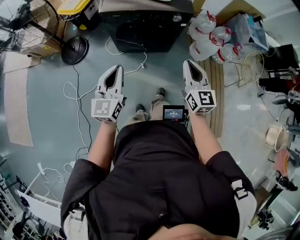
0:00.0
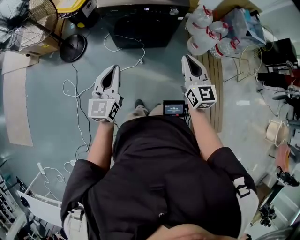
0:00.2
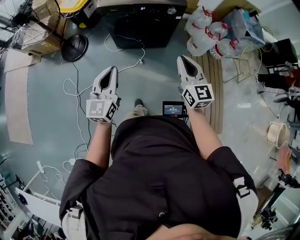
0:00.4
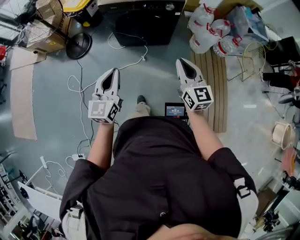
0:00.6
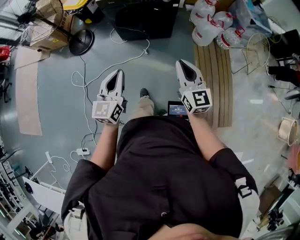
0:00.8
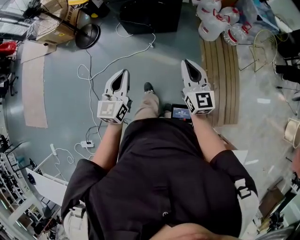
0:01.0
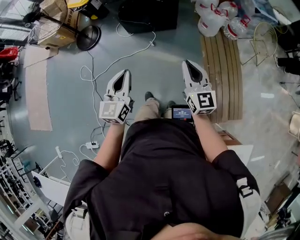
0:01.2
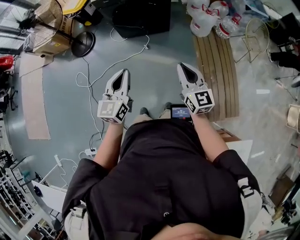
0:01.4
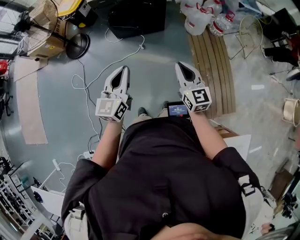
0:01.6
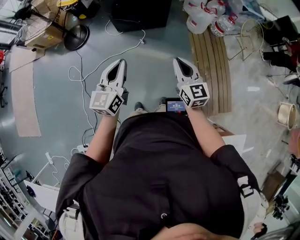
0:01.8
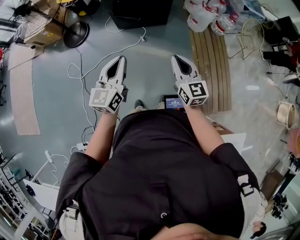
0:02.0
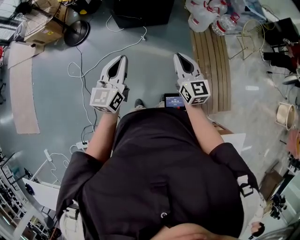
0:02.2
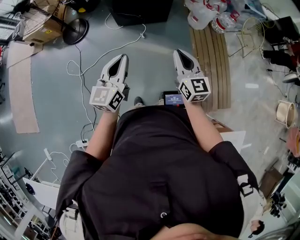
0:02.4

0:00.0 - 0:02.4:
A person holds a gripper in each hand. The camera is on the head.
0:00.0 - 0:01.2: Both grippers travel together backward, some 25 cm.
0:01.2 - 0:02.4: The right gripper shifts roughly 10 cm to the left. Meanwhile the left gripper travels to the left by about 5 cm.

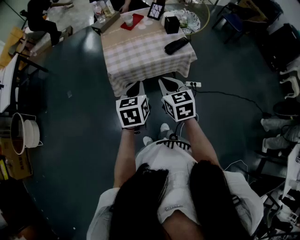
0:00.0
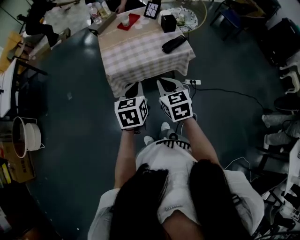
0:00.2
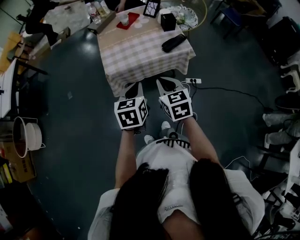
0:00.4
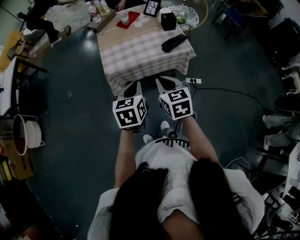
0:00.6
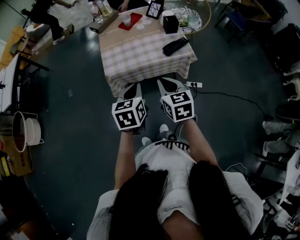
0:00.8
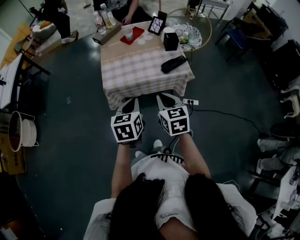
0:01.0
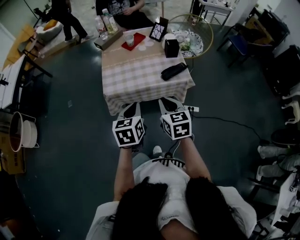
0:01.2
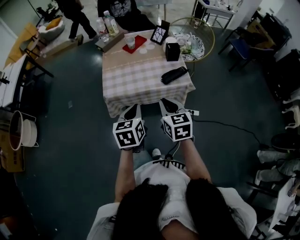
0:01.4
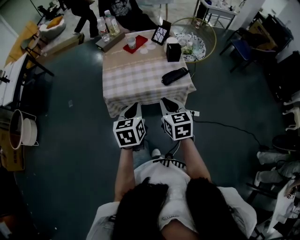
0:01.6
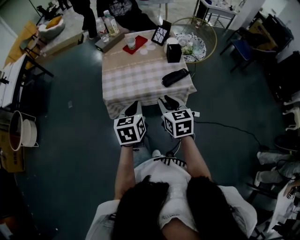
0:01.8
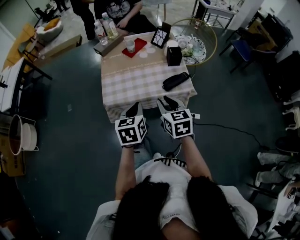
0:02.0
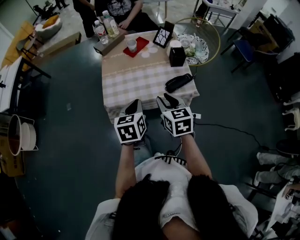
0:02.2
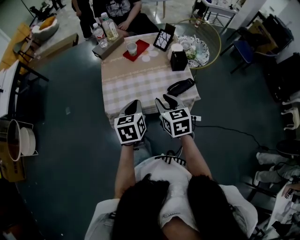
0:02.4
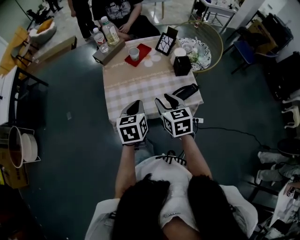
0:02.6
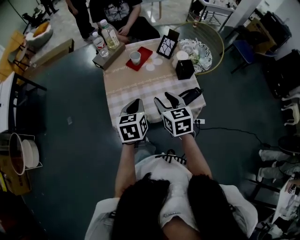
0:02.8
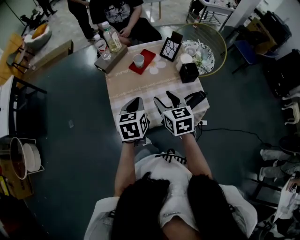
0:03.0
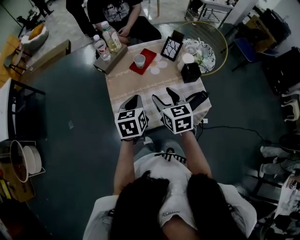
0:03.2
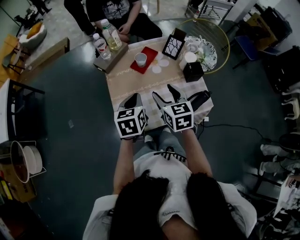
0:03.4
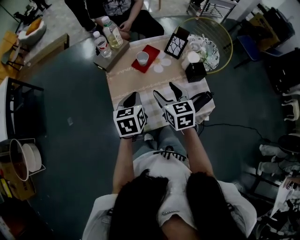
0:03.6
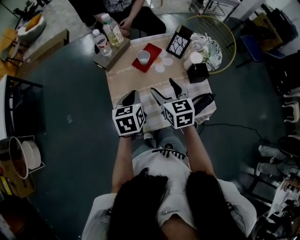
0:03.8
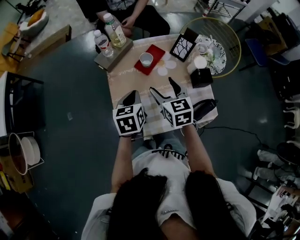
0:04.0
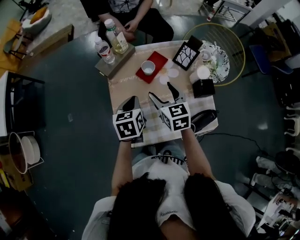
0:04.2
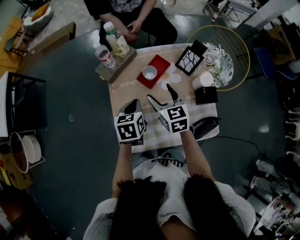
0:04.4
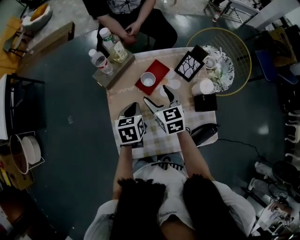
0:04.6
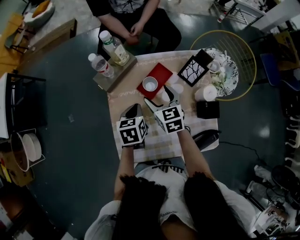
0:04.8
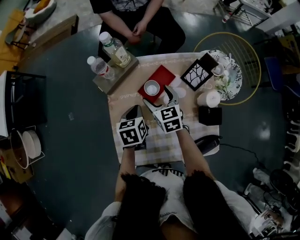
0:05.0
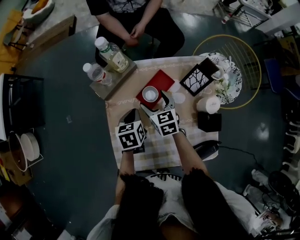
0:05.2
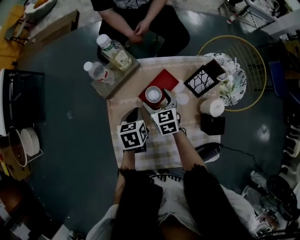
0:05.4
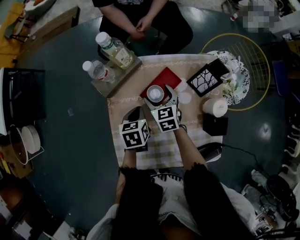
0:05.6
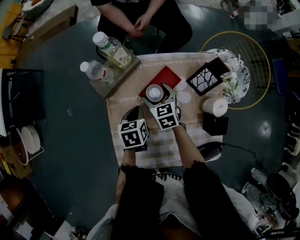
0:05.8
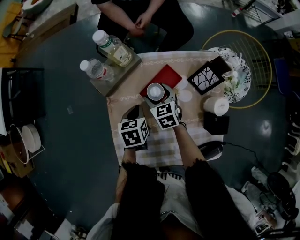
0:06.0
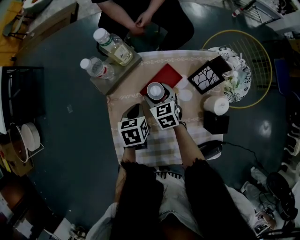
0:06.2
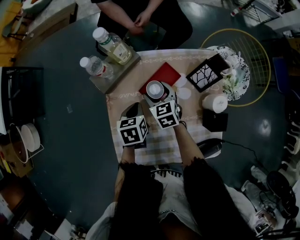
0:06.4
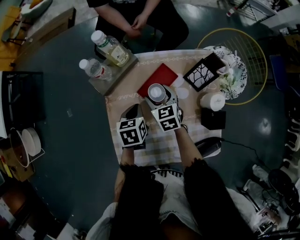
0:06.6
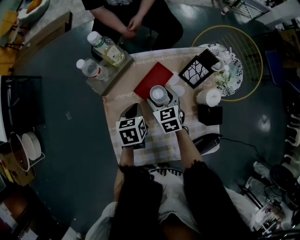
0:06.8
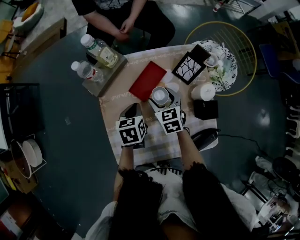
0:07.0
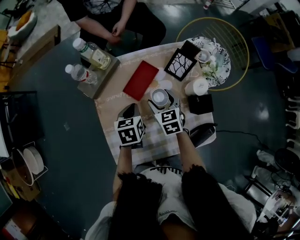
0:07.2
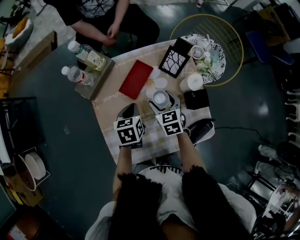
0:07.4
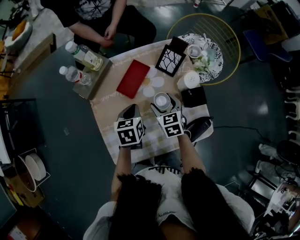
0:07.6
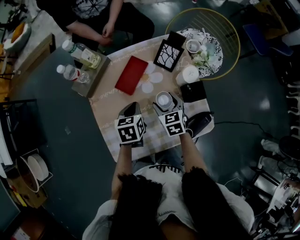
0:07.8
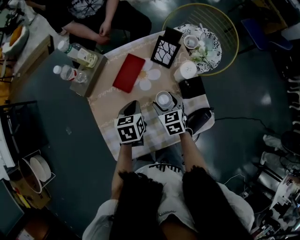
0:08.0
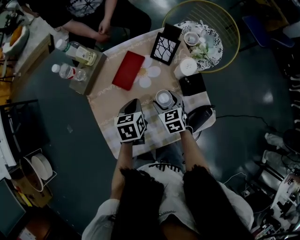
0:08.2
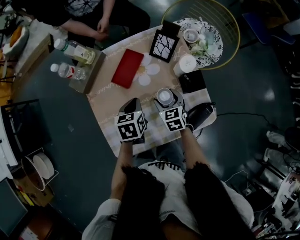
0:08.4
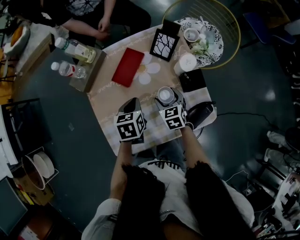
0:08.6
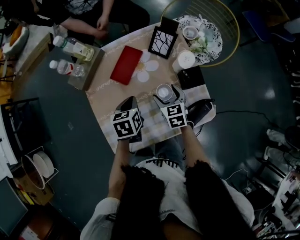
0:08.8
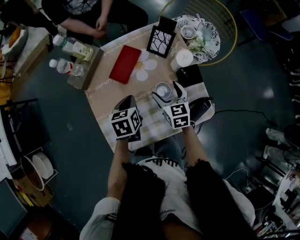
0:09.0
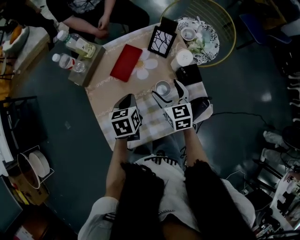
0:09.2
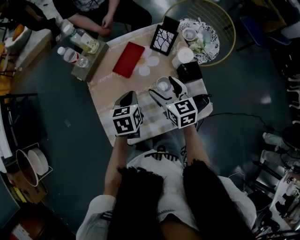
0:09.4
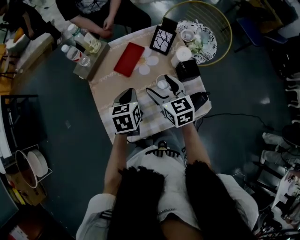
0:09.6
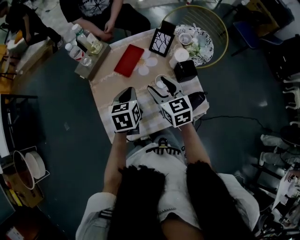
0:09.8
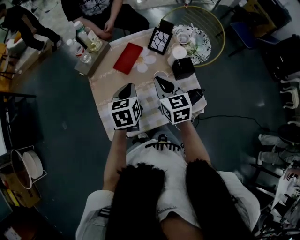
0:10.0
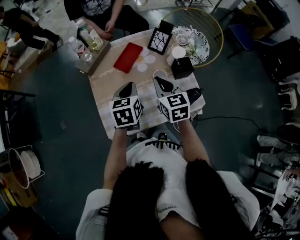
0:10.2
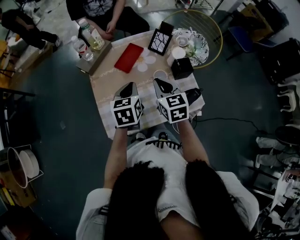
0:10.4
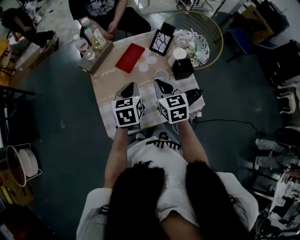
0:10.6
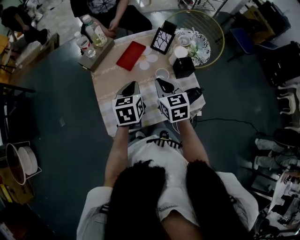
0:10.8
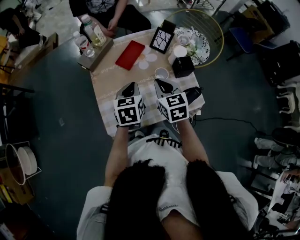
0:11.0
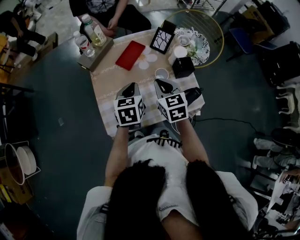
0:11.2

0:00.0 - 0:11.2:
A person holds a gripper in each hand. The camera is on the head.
0:00.0 - 0:01.6: The two grippers go some 10 cm to the right and forward.
0:01.6 - 0:03.2: Both grippers travel together forward, about 30 cm. The right gripper opens.
0:03.2 - 0:04.8: The grippers both shift forward and downward by about 25 cm.
0:04.8 - 0:06.4: The left gripper moves downward, some 5 cm, while the right gripper heads downward and forward, covering about 10 cm.
0:06.4 - 0:08.0: The right gripper moves to the right and backward, roughly 20 cm. Meanwhile the left gripper moves to the right and backward, approximately 15 cm.
0:08.0 - 0:09.6: The left gripper shifts roughly 5 cm upward, while the right gripper goes approximately 15 cm upward, and rotates about 20 degrees.
0:09.6 - 0:11.2: The right gripper moves backward, about 5 cm, and closes; the left gripper changes place by approximately 5 cm.

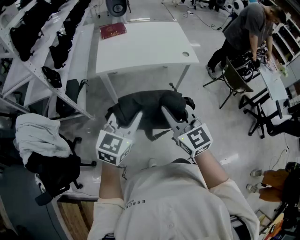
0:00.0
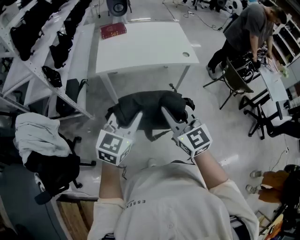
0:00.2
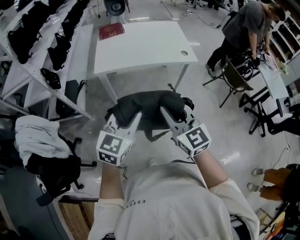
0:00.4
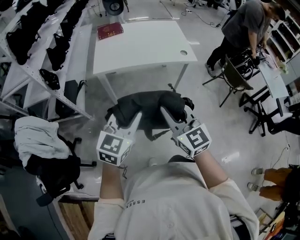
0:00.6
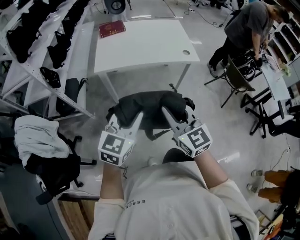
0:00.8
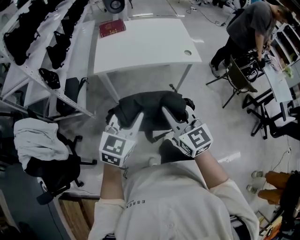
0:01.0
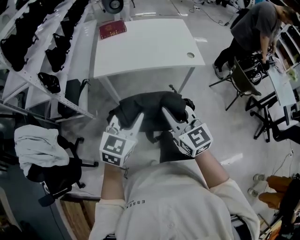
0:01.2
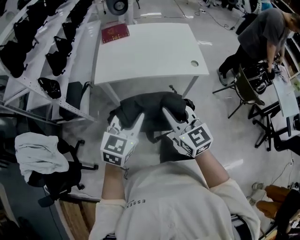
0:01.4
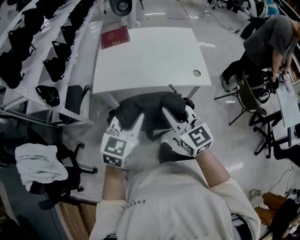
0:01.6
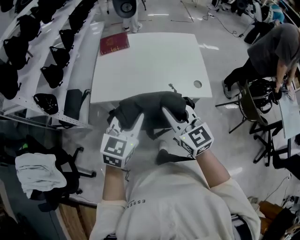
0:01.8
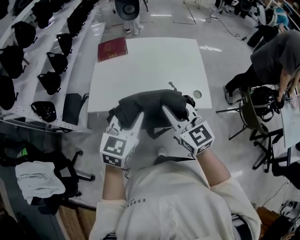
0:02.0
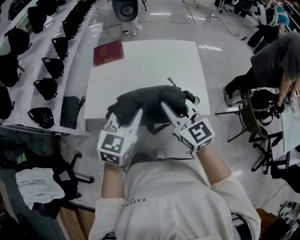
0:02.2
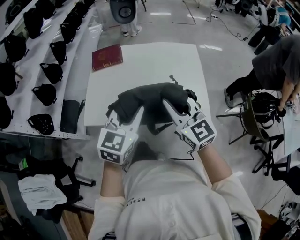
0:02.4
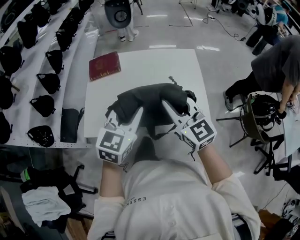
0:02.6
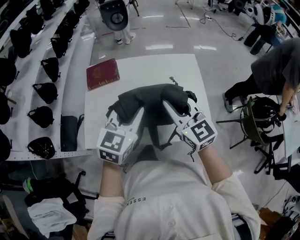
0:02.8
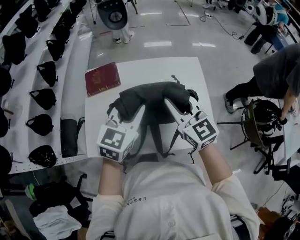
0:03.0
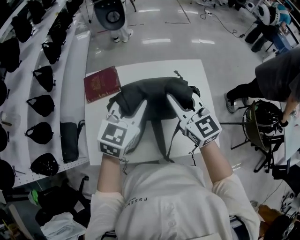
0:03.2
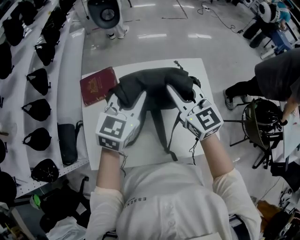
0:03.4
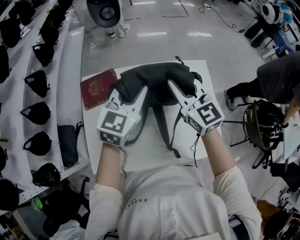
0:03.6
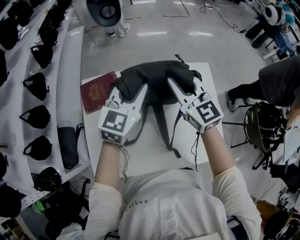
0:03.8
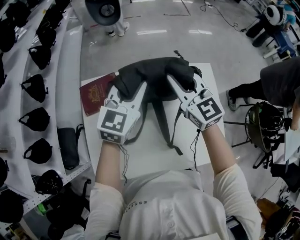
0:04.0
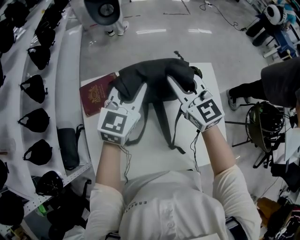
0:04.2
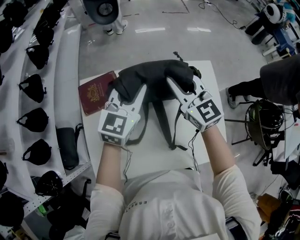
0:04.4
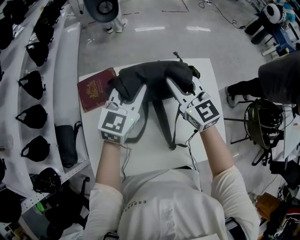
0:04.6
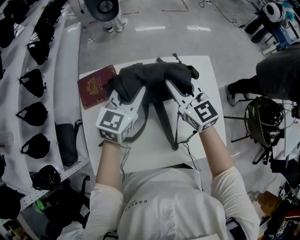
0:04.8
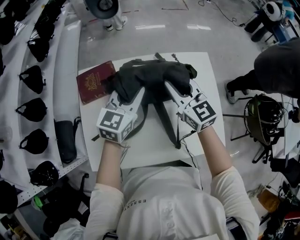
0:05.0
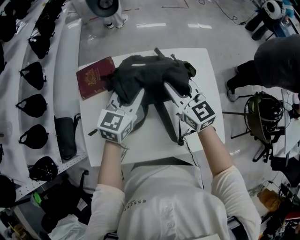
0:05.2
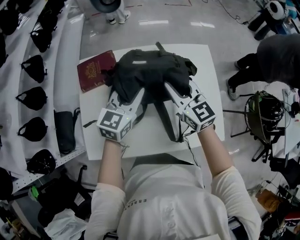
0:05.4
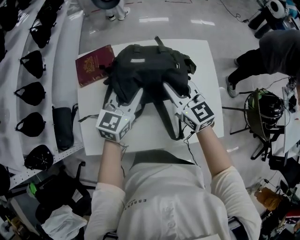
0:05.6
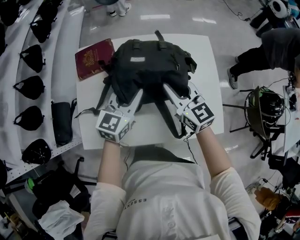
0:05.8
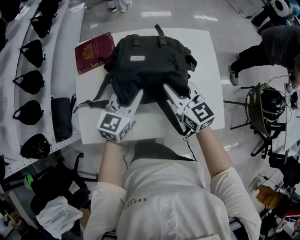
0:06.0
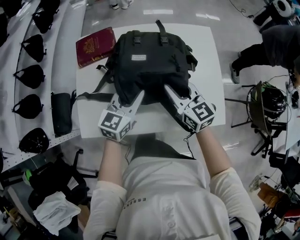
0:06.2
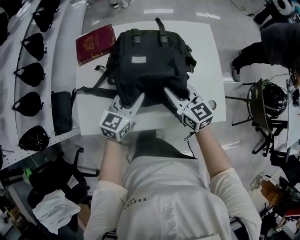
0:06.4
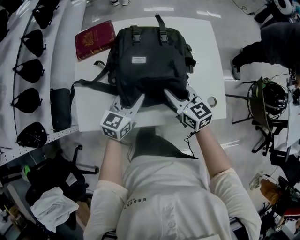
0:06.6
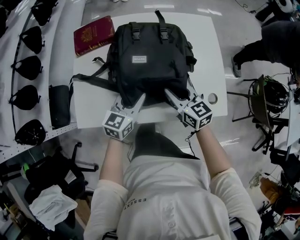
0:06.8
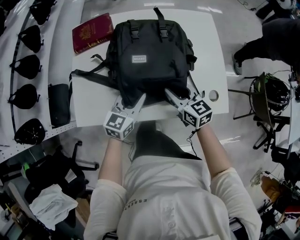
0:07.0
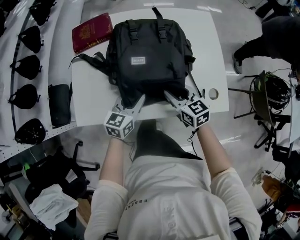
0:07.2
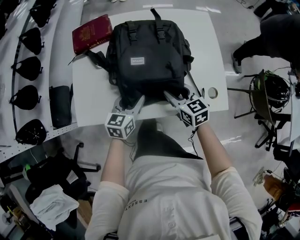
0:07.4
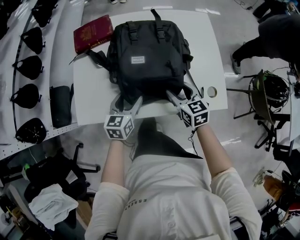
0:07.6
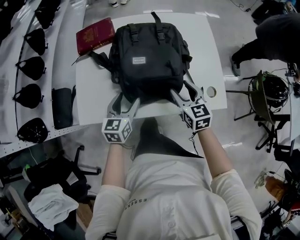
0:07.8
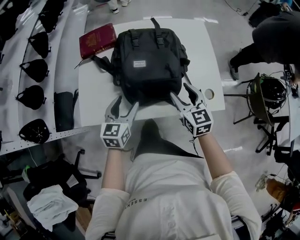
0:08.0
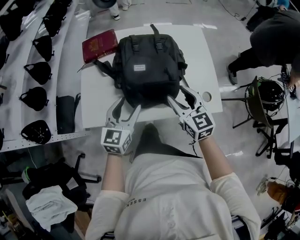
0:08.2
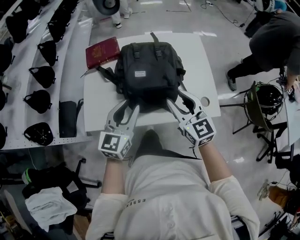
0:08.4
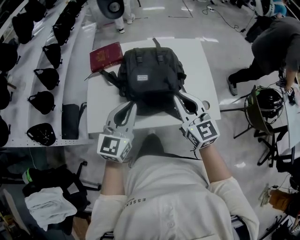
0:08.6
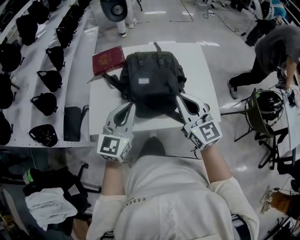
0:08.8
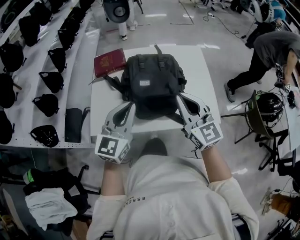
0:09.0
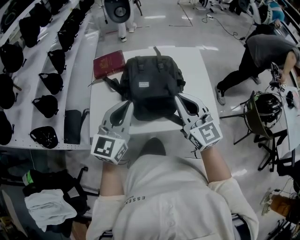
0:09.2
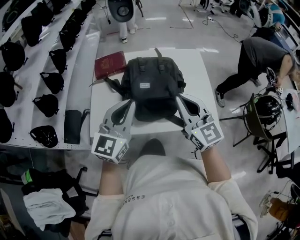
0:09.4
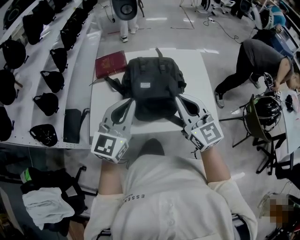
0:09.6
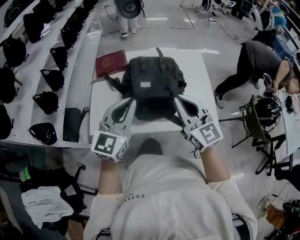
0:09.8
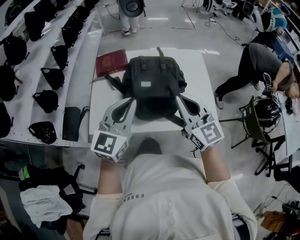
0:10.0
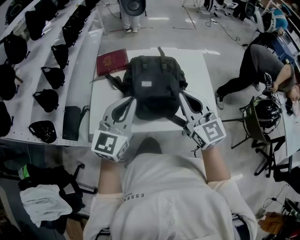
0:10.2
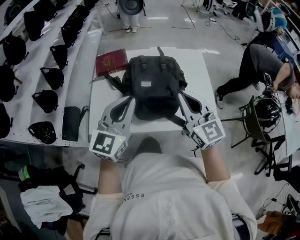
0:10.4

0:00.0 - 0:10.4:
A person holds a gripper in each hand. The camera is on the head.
0:00.0 - 0:01.4: Both grippers travel together forward, about 15 cm.
0:01.4 - 0:03.0: The pair of grippers is taken forward, some 50 cm.
0:03.0 - 0:04.4: Both grippers move forward, some 20 cm.
0:04.4 - 0:06.0: The grippers both shift backward and downward by about 20 cm.
0:06.0 - 0:07.4: Both grippers move downward and backward, approximately 15 cm. The right gripper opens its fingers. Meanwhile the left gripper opens its fingers.
0:07.4 - 0:09.0: Both grippers move upward, some 25 cm. The left gripper turns by some 30 degrees, and closes up; the right gripper points its fingers some 30 degrees further upward, and closes its fingers.
0:09.0 - 0:10.4: The grippers move only a little.
